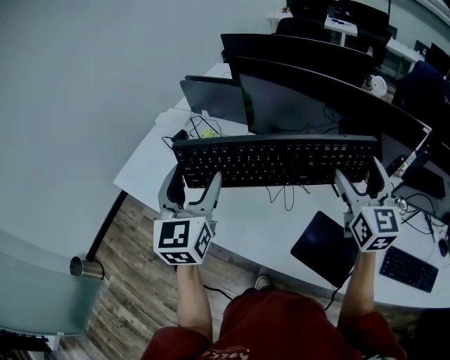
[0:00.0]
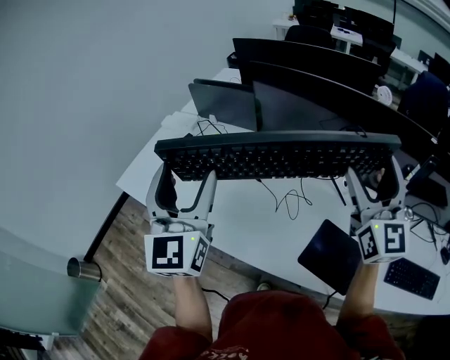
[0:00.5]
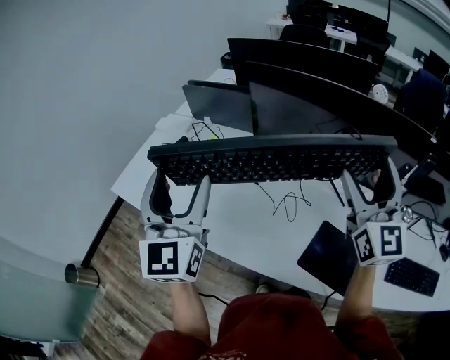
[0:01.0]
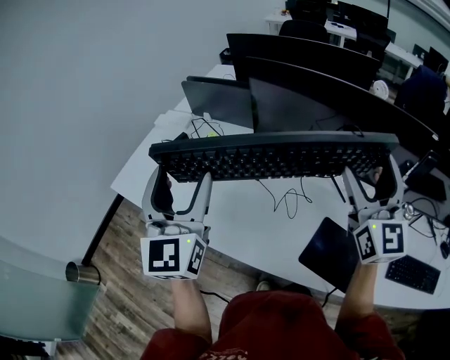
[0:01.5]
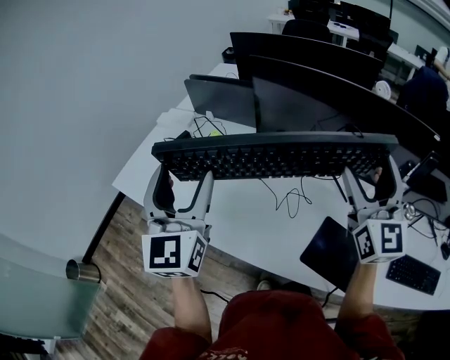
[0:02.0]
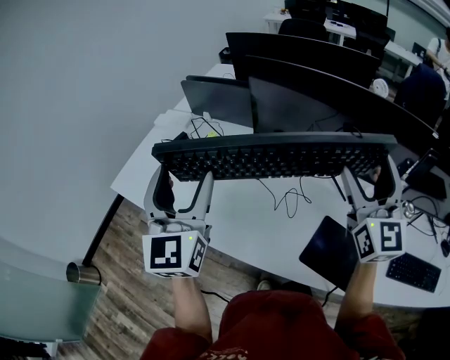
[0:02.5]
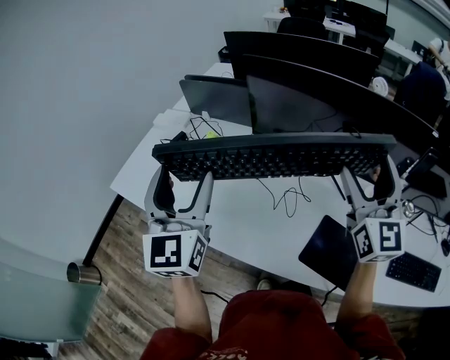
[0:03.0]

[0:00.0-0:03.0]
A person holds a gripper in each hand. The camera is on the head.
0:00.0 to 0:01.5: The right gripper heads upward, covering roughly 5 cm; the left gripper changes place by roughly 5 cm.
0:01.5 to 0:03.0: The grippers move only a little.

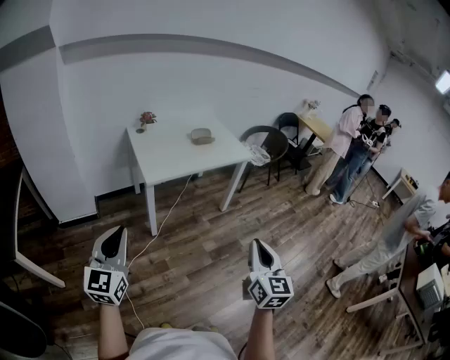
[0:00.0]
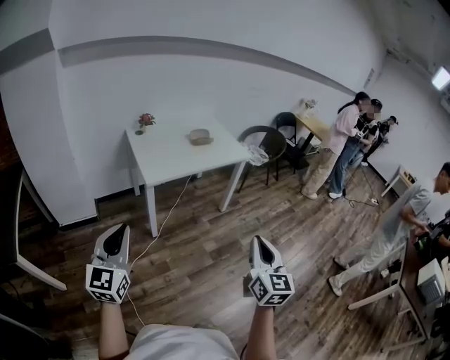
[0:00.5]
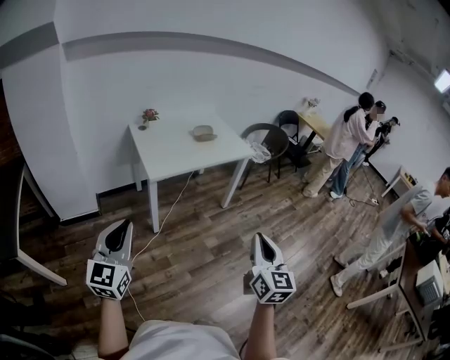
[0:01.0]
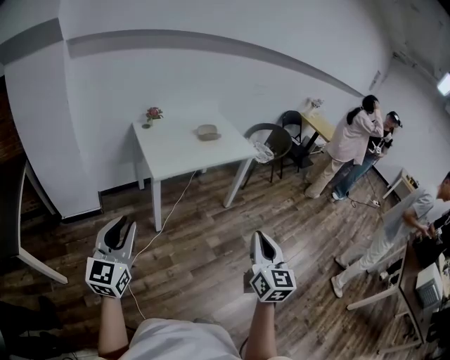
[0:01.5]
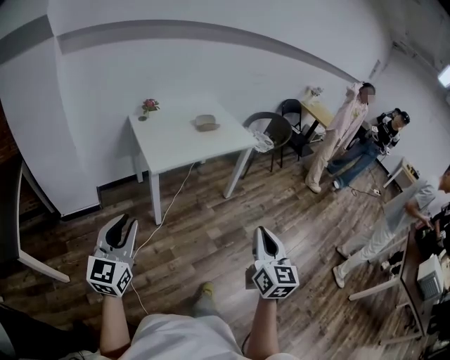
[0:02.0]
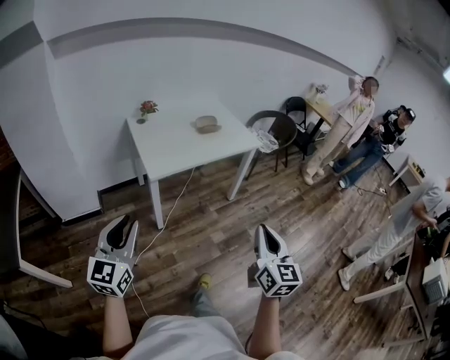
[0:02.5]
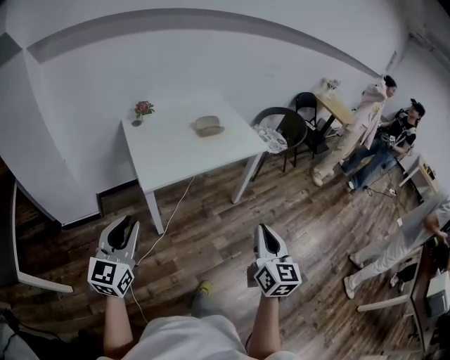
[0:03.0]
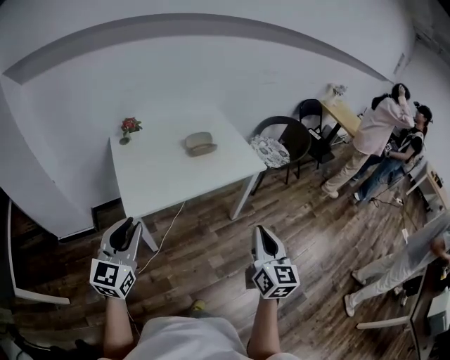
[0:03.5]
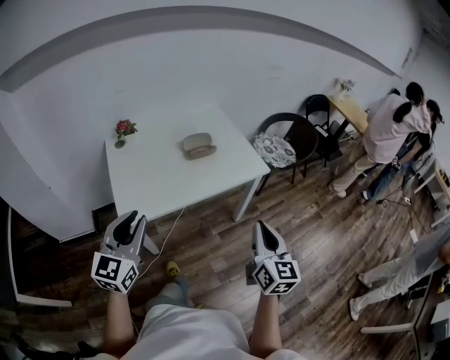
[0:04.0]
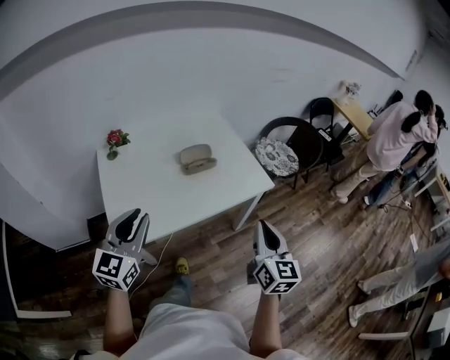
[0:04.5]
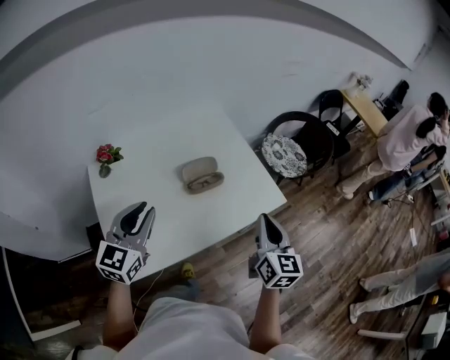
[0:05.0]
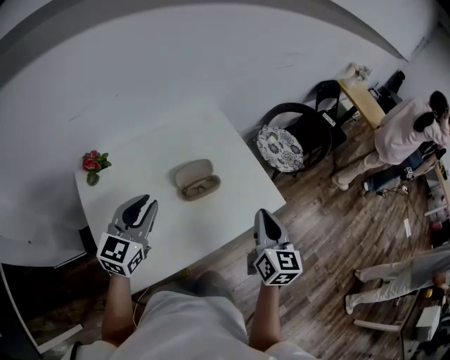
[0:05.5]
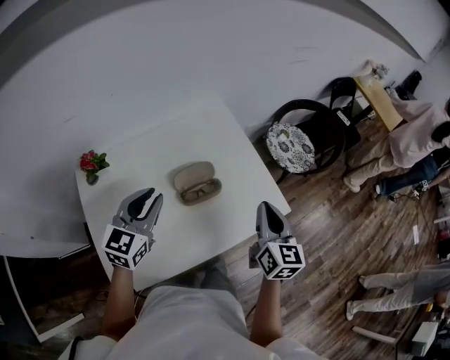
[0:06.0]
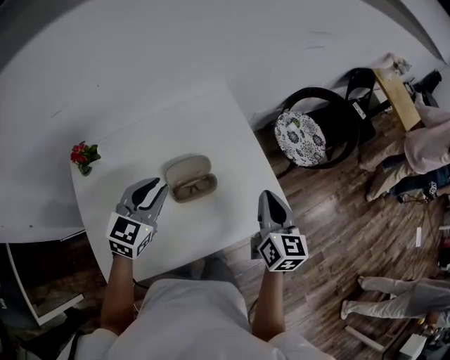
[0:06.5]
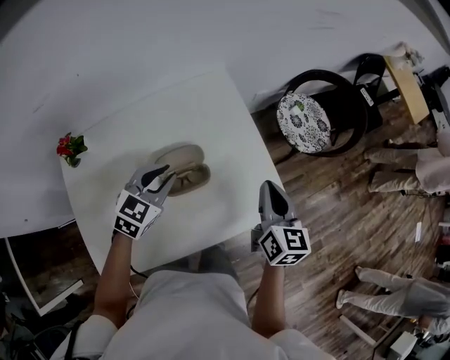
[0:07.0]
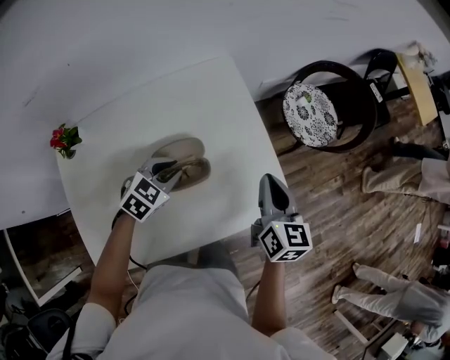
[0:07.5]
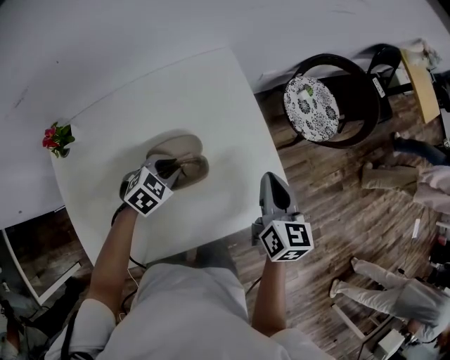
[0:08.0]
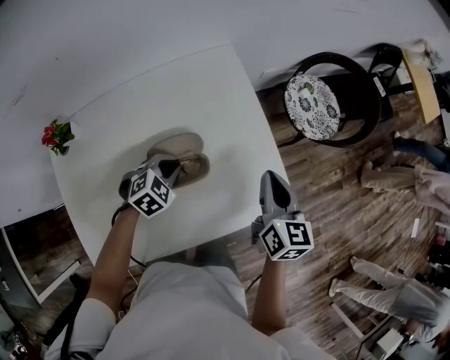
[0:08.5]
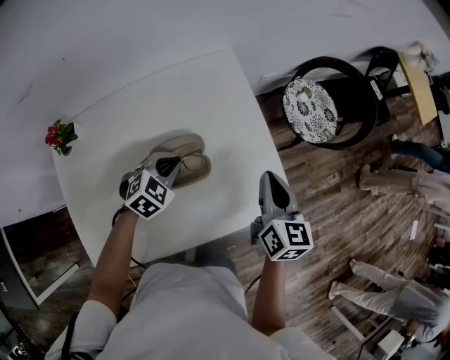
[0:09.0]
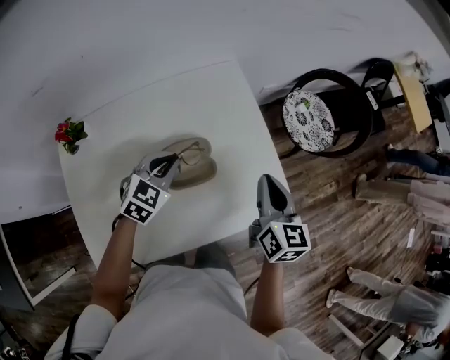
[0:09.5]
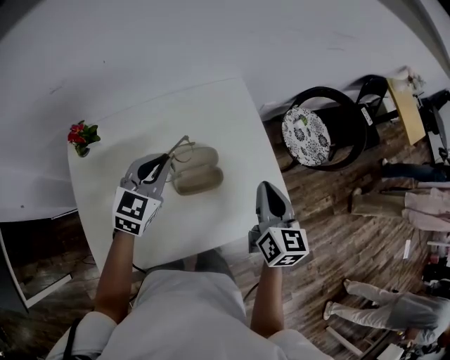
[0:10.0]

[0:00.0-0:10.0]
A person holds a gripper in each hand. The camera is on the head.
0:00.0 to 0:02.0: The grippers stay close to where they were, moving slightly.
0:02.0 to 0:04.0: The two grippers travel together, forward, some 50 cm.
0:04.0 to 0:06.0: Both grippers are carried forward, approximately 40 cm.
0:06.0 to 0:08.0: The right gripper moves forward and downward, approximately 15 cm; the left gripper is displaced downward and forward by roughly 30 cm, and angles its fingers downward, by some 40 degrees.
0:08.0 to 0:10.0: The left gripper travels upward and to the left by about 20 cm, and tilts its fingers roughly 30 degrees upward. Meanwhile the right gripper goes roughly 10 cm upward and to the left.

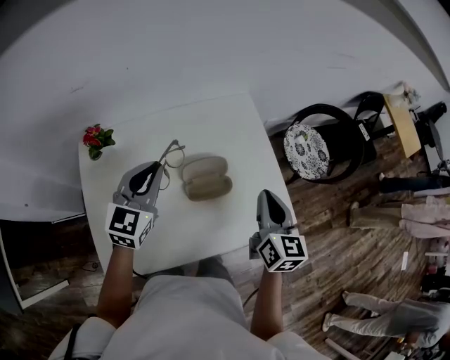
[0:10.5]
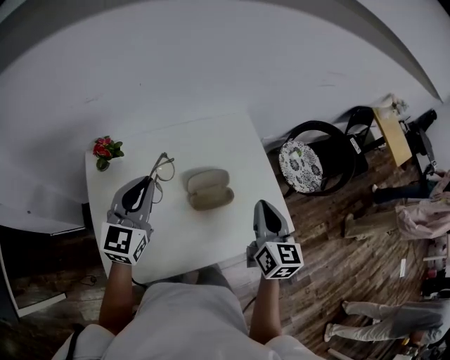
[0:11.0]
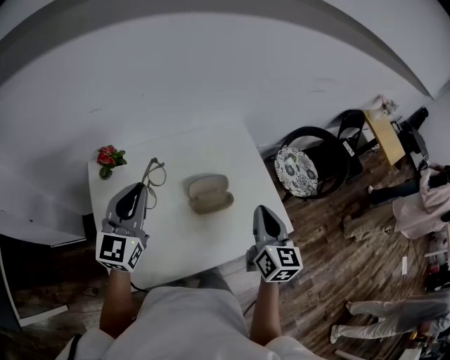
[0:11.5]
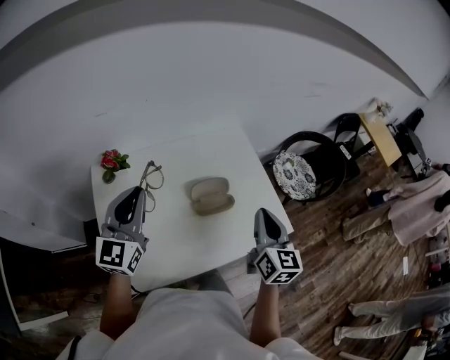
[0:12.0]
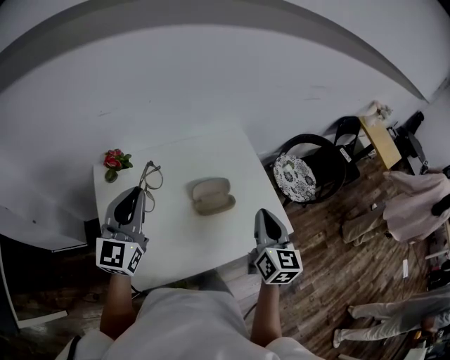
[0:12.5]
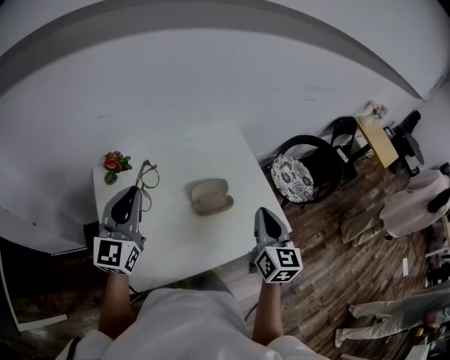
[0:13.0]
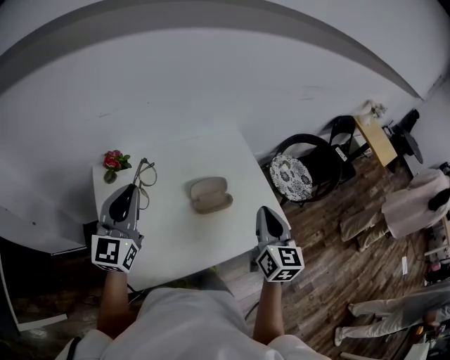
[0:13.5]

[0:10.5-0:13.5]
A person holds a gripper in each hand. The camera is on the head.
0:10.5 to 0:12.0: The left gripper heads backward, upward and to the left, covering roughly 15 cm. Meanwhile the right gripper is displaced backward and upward by about 10 cm.
0:12.0 to 0:13.5: There are only small adjustments of the grippers.

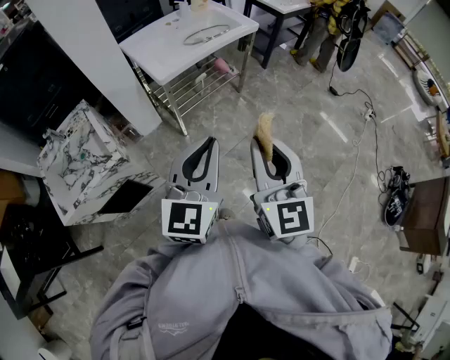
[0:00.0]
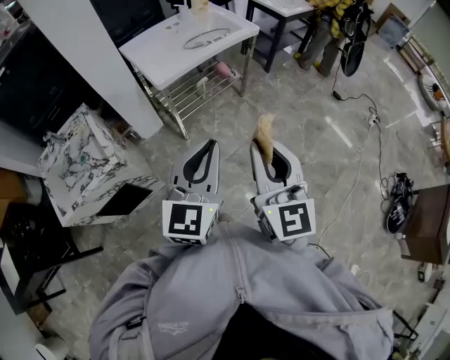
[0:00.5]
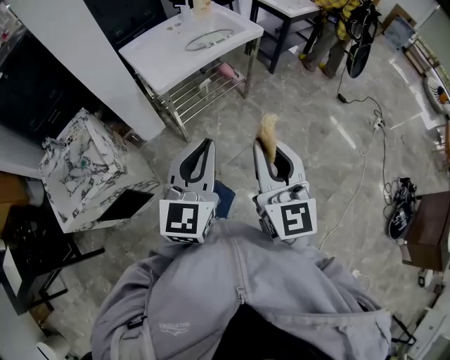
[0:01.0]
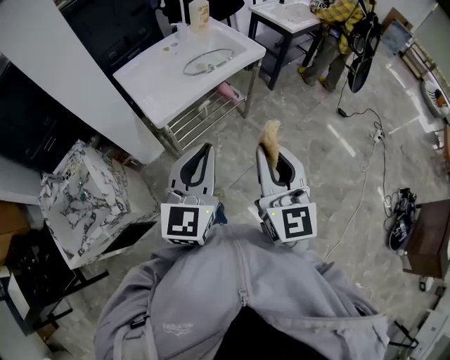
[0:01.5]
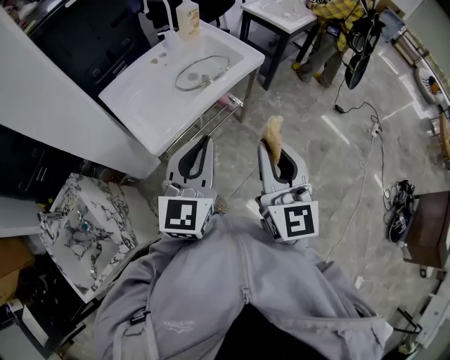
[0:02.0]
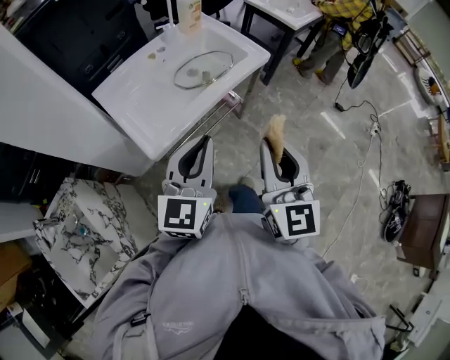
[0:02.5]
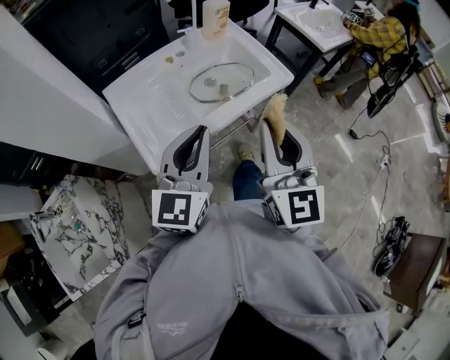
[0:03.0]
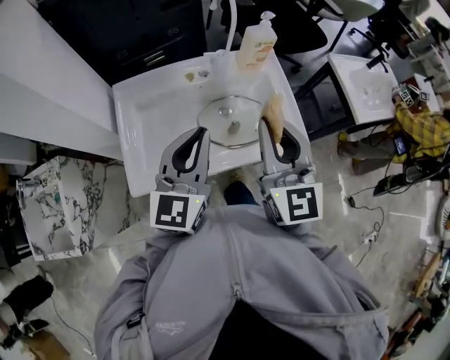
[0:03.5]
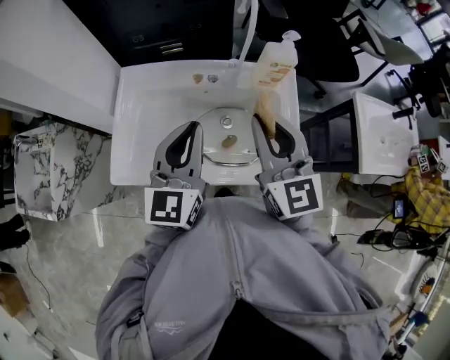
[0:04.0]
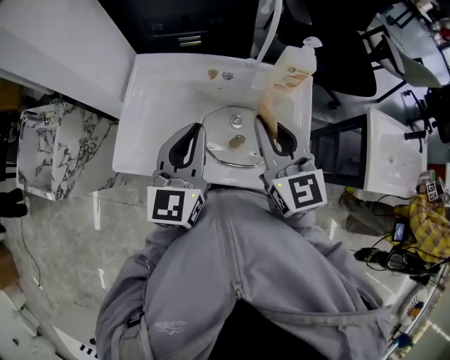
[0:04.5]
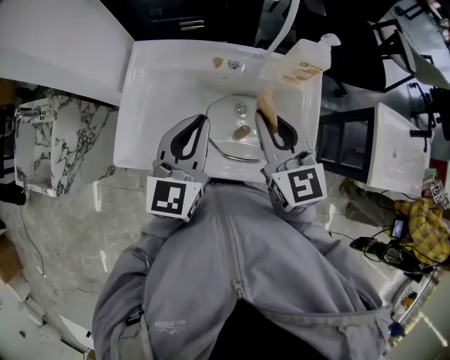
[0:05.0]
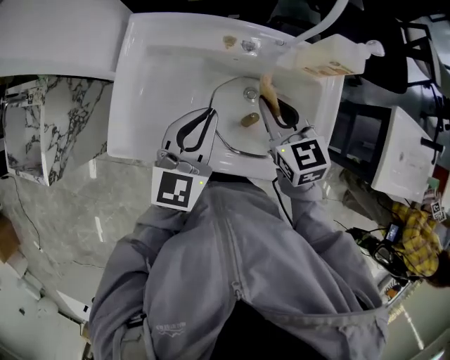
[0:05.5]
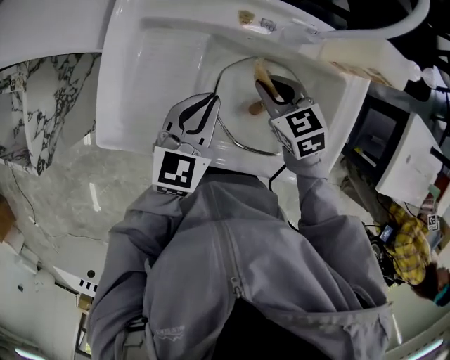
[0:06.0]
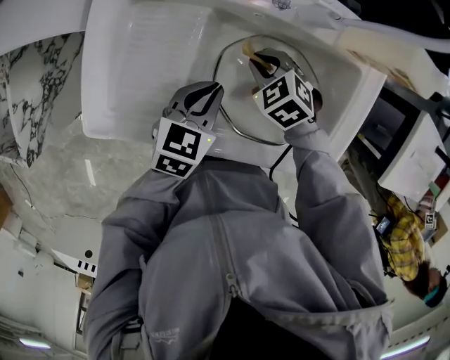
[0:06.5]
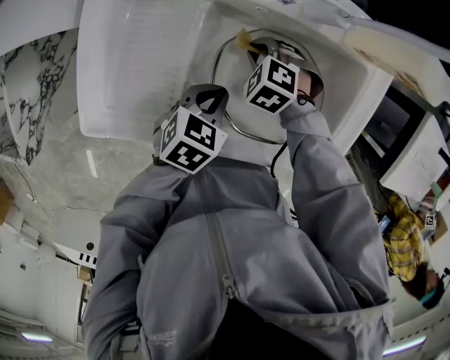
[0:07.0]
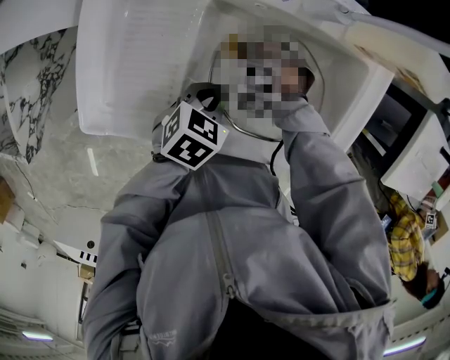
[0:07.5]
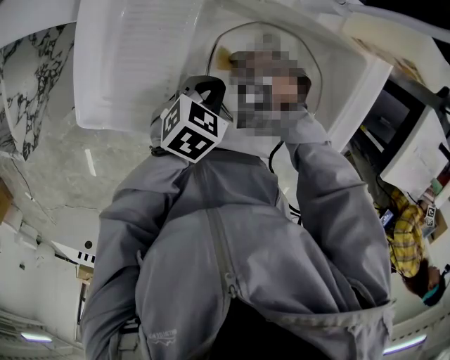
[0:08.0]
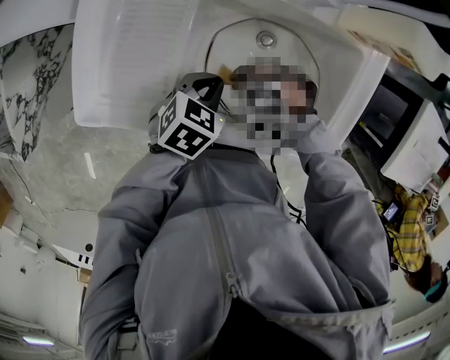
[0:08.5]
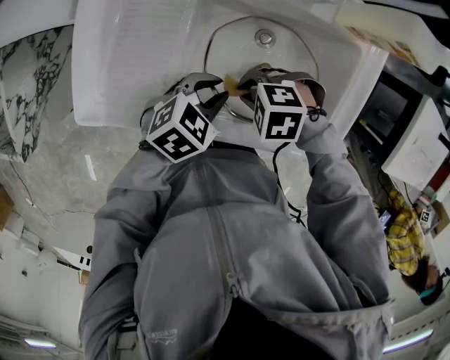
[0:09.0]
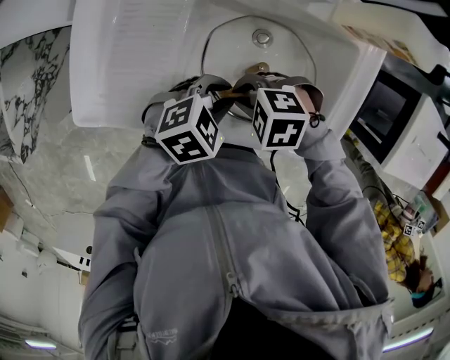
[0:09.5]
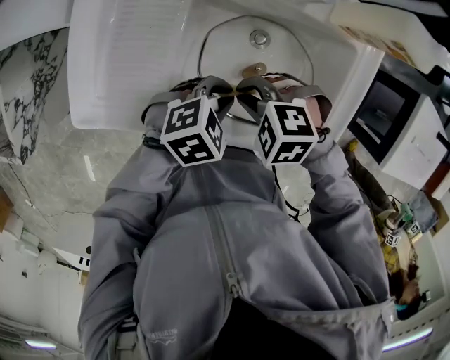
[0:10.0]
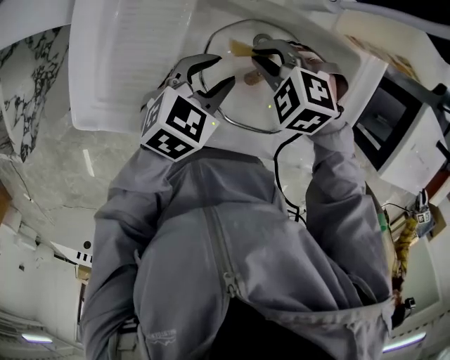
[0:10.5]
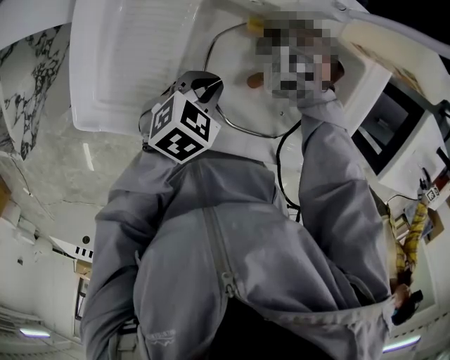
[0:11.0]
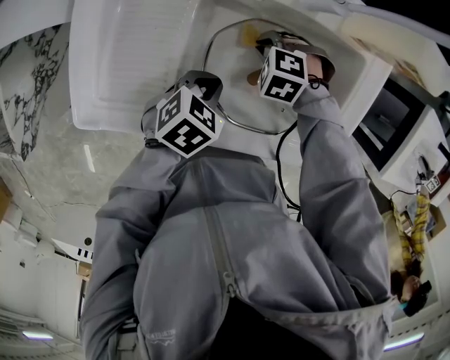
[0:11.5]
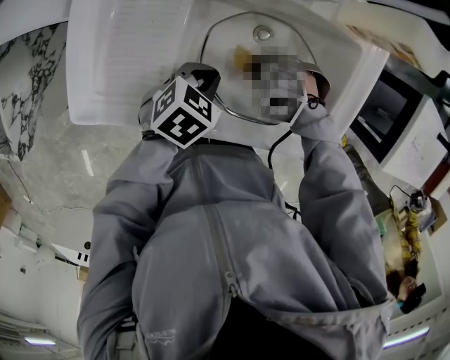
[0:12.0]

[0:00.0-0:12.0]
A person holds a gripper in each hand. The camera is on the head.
0:00.0 to 0:02.0: Both grippers move forward, about 35 cm.
0:02.0 to 0:04.0: Both grippers are carried about 50 cm. The left gripper rotates roughly 50 degrees; the right gripper turns by roughly 60 degrees.
0:04.0 to 0:06.0: Both grippers move downward, about 25 cm. The left gripper changes its angle by approximately 30 degrees. Meanwhile the right gripper angles its fingers downward, by roughly 40 degrees.
0:06.0 to 0:08.0: The grippers both shift downward by approximately 10 cm. The right gripper twists roughly 60 degrees counterclockwise, seen from behind, while the left gripper angles its fingers downward, by approximately 30 degrees.
0:08.0 to 0:10.0: The right gripper moves upward, about 10 cm. Meanwhile the left gripper changes place by roughly 5 cm, and changes its angle by roughly 30 degrees.
0:10.0 to 0:12.0: The left gripper shifts by about 5 cm, rotates some 20 degrees, and opens, then closes again. The right gripper is displaced downward by about 10 cm.
